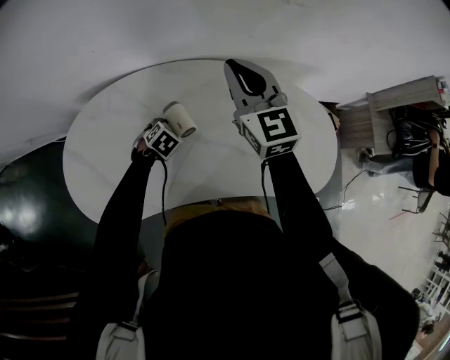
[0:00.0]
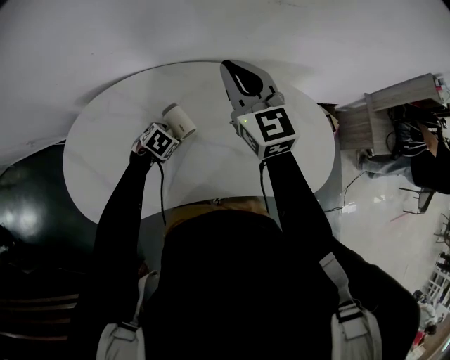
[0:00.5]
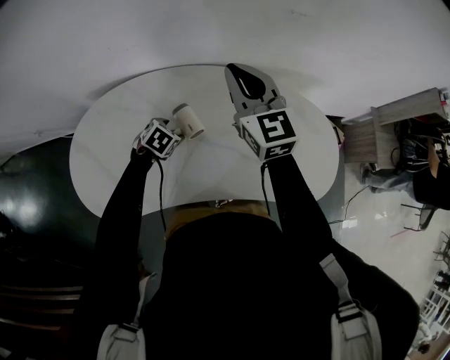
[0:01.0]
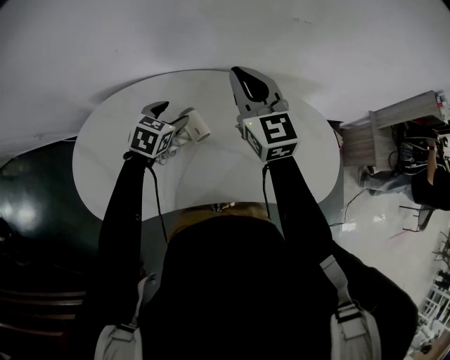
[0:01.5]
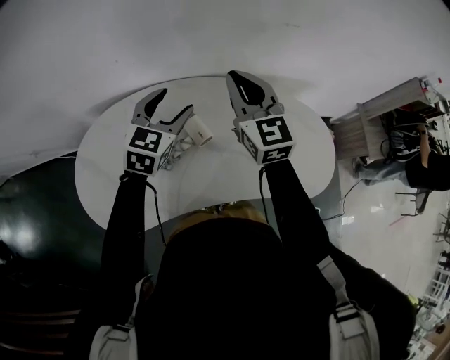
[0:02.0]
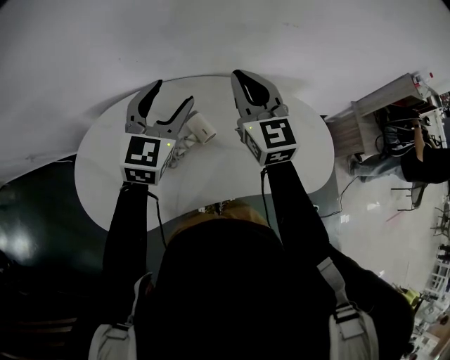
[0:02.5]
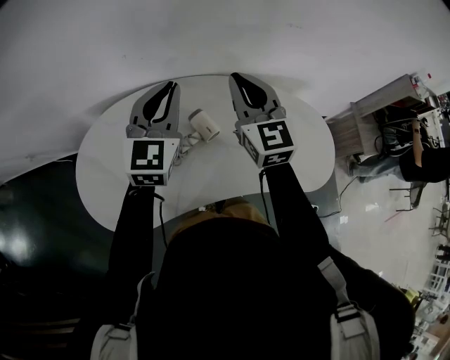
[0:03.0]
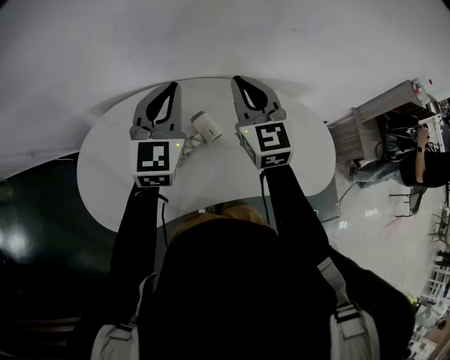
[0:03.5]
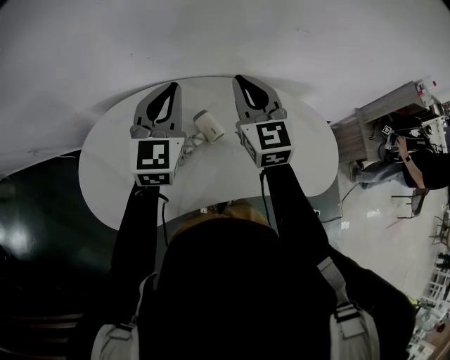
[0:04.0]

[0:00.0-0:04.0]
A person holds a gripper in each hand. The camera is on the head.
0:00.0 to 0:02.0: The left gripper shifts approximately 30 cm upward, and points its fingers about 50 degrees further upward. Meanwhile the right gripper shifts by approximately 5 cm.
0:02.0 to 0:04.0: The left gripper moves upward, roughly 10 cm, changes its angle by roughly 20 degrees, and closes its fingers.

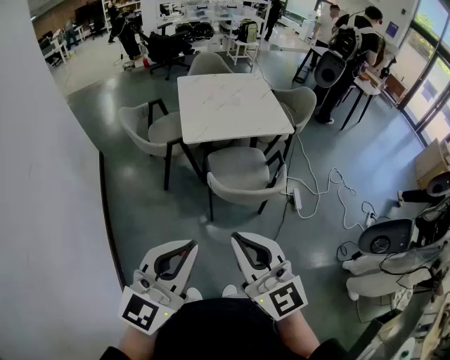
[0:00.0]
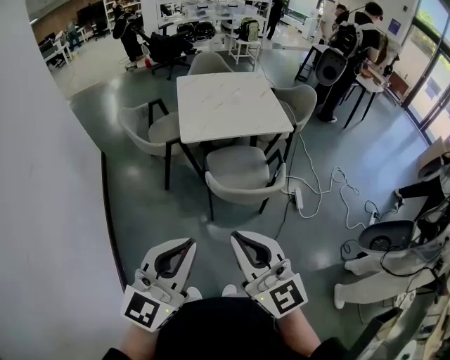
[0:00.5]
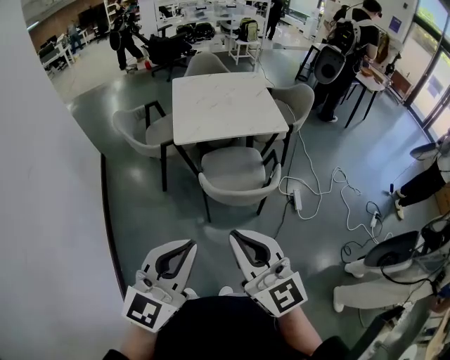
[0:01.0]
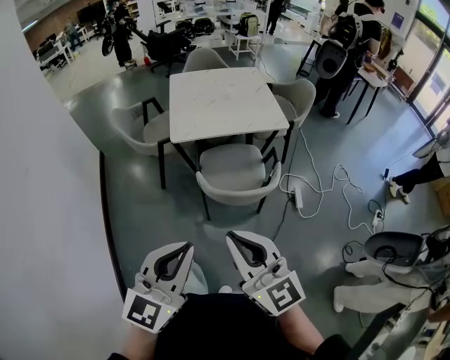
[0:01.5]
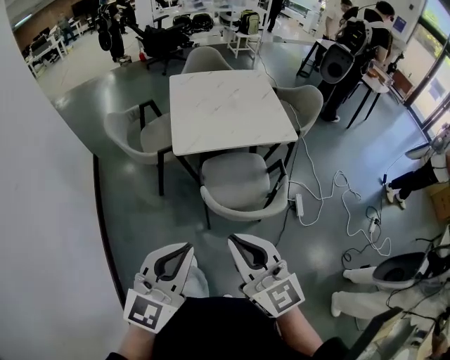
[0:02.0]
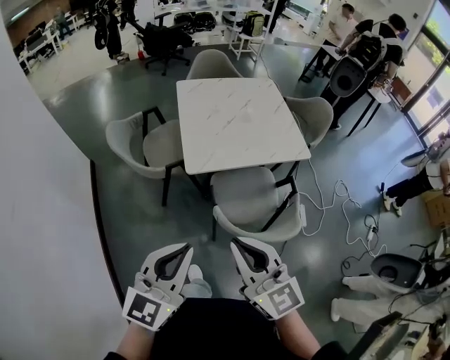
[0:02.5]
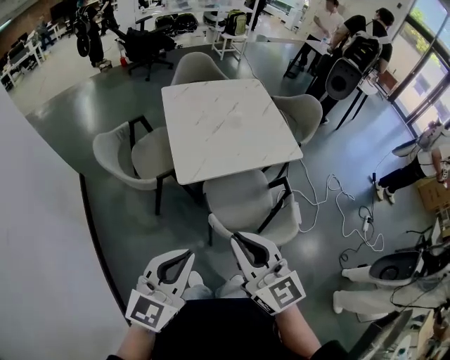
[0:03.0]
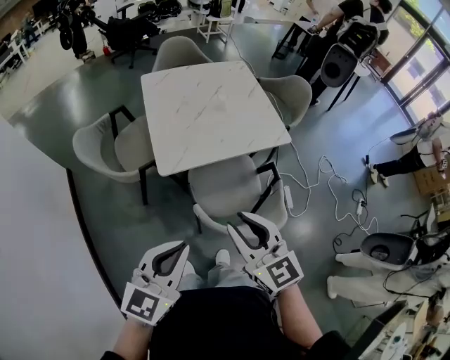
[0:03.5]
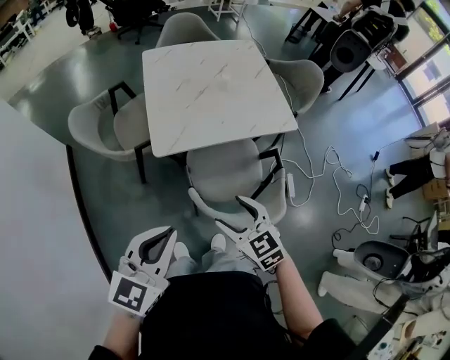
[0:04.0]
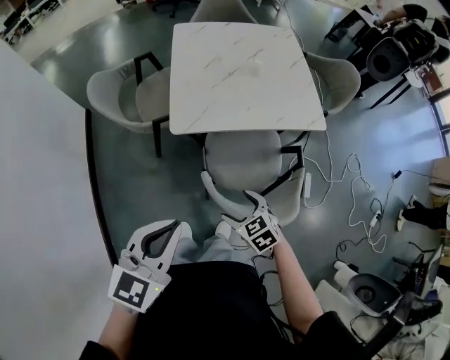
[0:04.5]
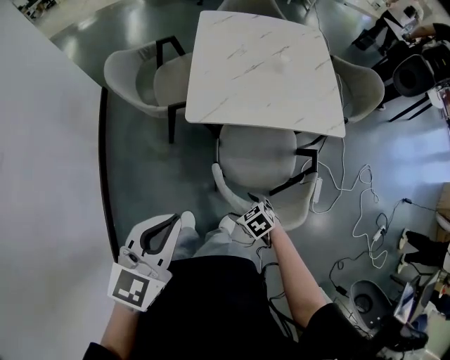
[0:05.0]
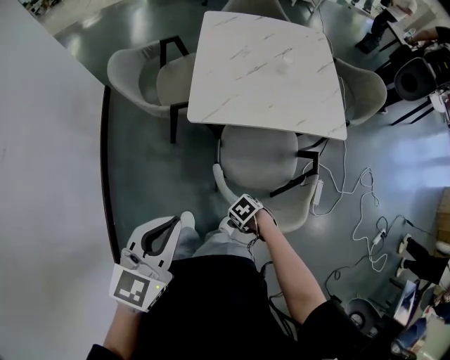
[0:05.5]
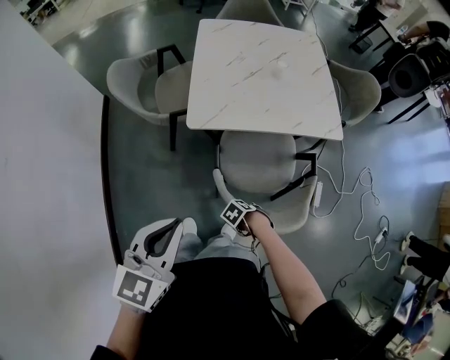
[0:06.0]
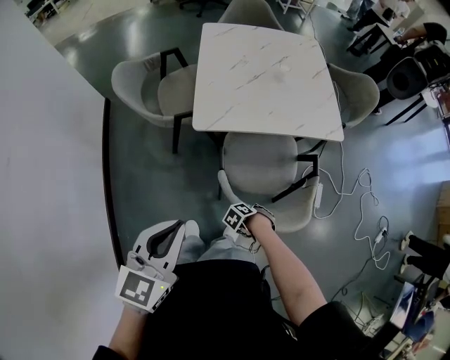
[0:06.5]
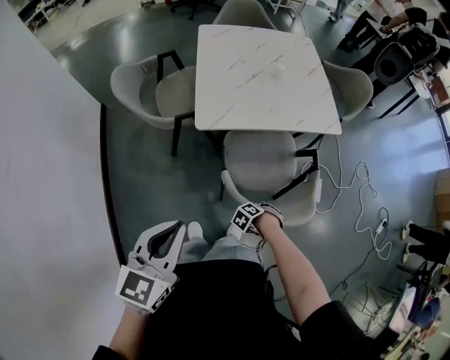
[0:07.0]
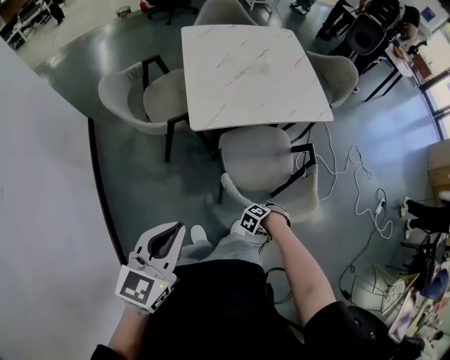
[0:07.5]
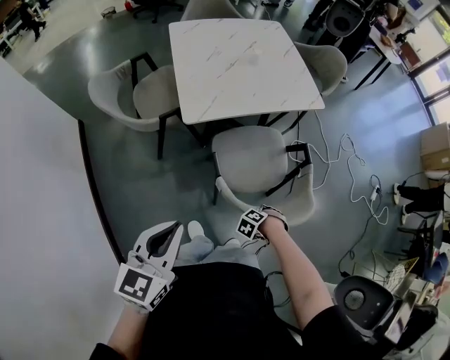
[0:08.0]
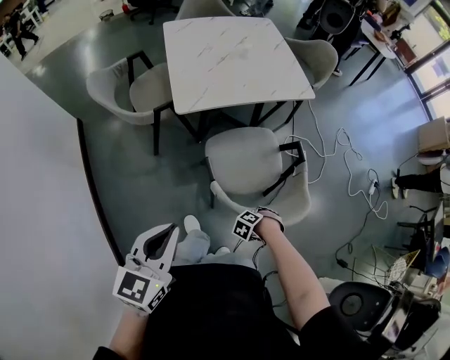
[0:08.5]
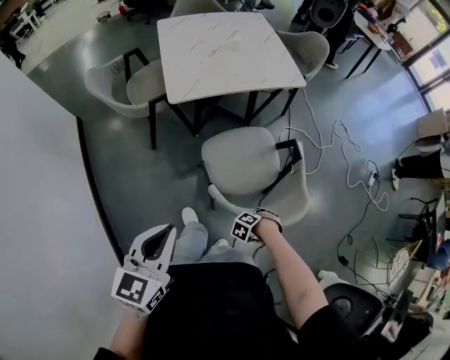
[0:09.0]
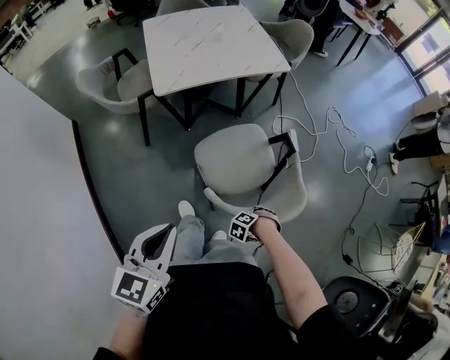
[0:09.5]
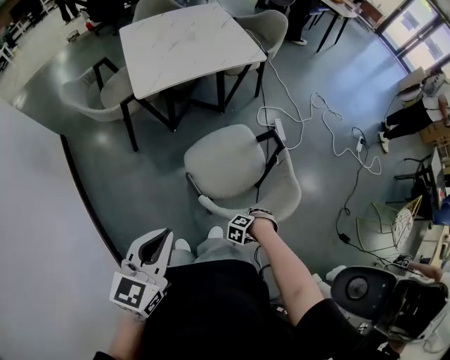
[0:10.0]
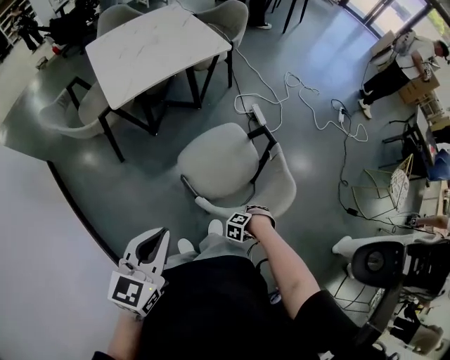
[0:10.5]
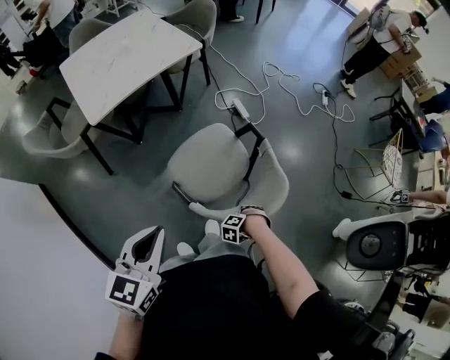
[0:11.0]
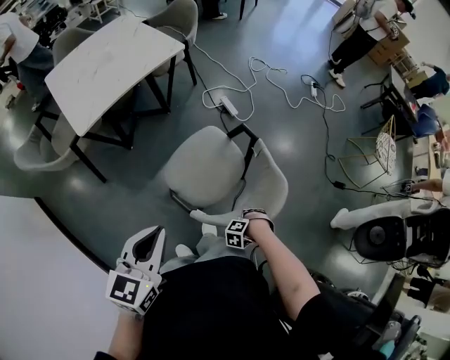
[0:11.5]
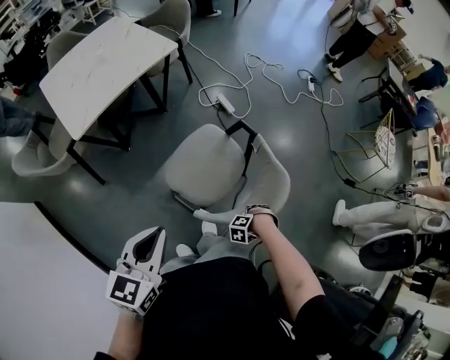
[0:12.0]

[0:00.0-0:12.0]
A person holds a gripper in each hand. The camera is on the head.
0:00.0 to 0:02.0: The two grippers go about 15 cm forward and downward.
0:02.0 to 0:04.0: The left gripper goes roughly 20 cm forward. The right gripper shifts approximately 30 cm forward and downward, tilts its fingers approximately 30 degrees downward, and opens up.
0:04.0 to 0:06.0: The right gripper goes approximately 30 cm downward, and points its fingers some 40 degrees further downward.
0:06.0 to 0:08.0: The right gripper moves roughly 5 cm, and closes its fingers. Meanwhile the left gripper shifts by approximately 10 cm.
0:08.0 to 0:10.0: The right gripper ends up approximately 25 cm from where it was, while the left gripper shifts by about 25 cm.
0:10.0 to 0:12.0: The left gripper shifts by about 10 cm, and rotates about 20 degrees, while the right gripper changes place by some 15 cm.

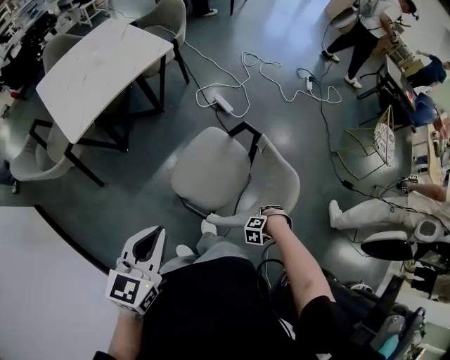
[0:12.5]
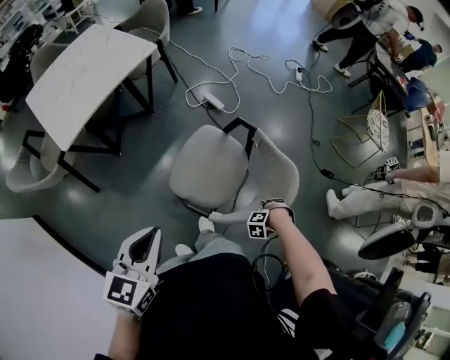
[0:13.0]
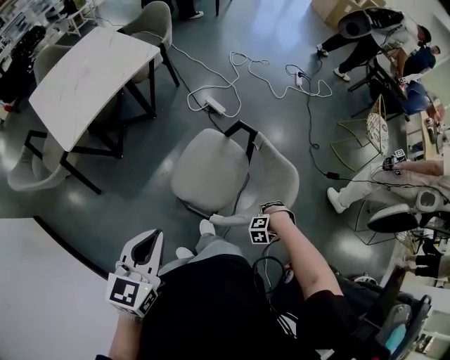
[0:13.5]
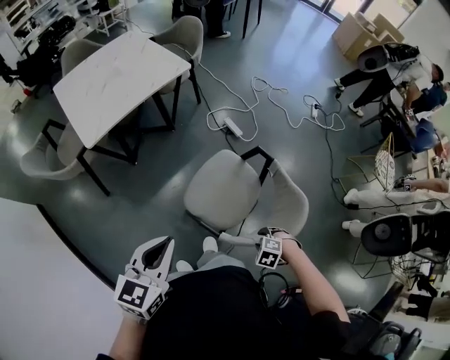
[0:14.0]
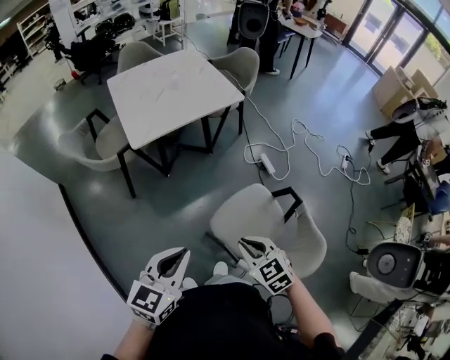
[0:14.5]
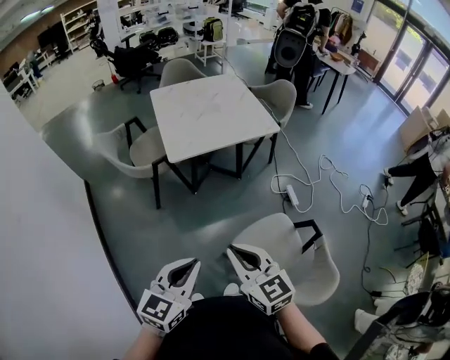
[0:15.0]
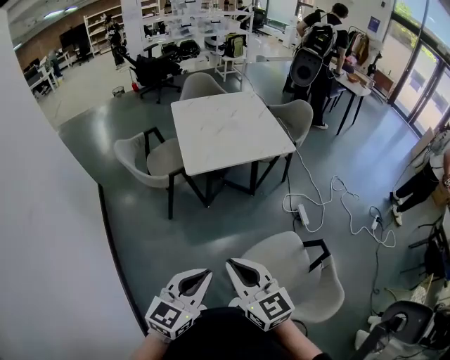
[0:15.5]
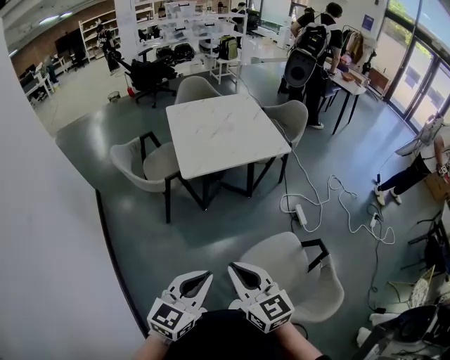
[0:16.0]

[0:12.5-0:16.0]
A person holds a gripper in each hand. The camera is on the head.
0:12.5 to 0:14.5: The left gripper changes place by roughly 10 cm. Meanwhile the right gripper shifts about 30 cm upward, and angles its fingers upward, by approximately 30 degrees.
0:14.5 to 0:16.0: The left gripper ends up approximately 5 cm from where it was; the right gripper travels upward and to the left by about 20 cm, and swivels roughly 30 degrees.

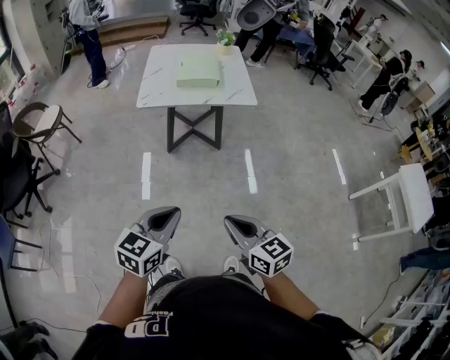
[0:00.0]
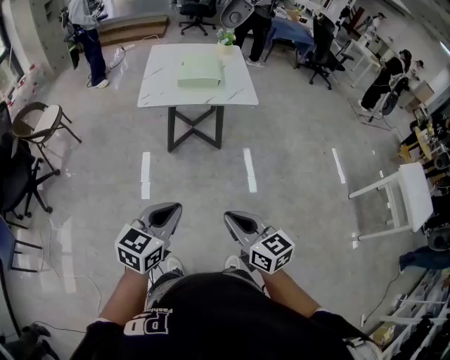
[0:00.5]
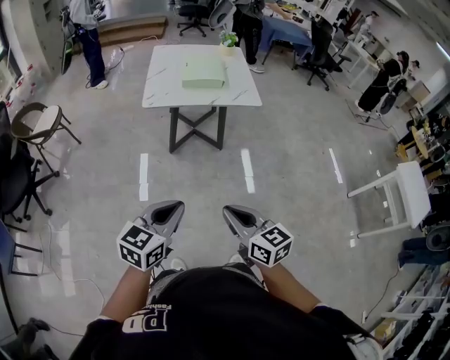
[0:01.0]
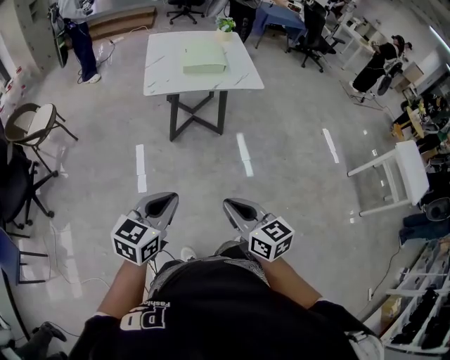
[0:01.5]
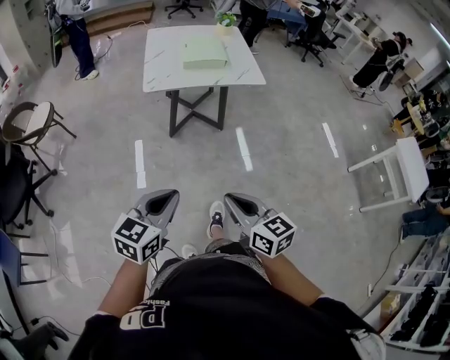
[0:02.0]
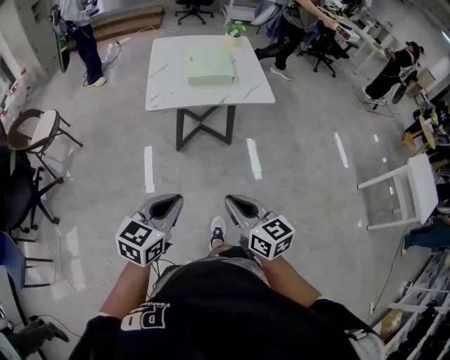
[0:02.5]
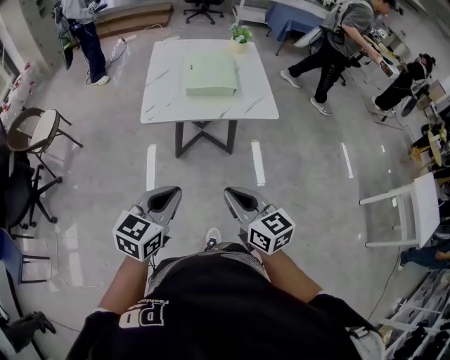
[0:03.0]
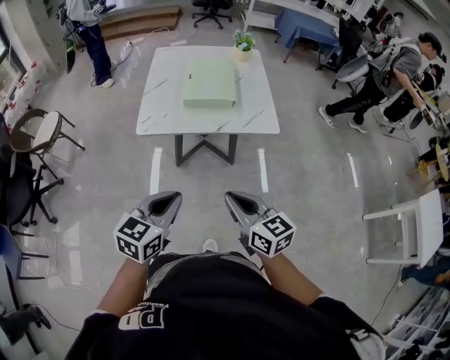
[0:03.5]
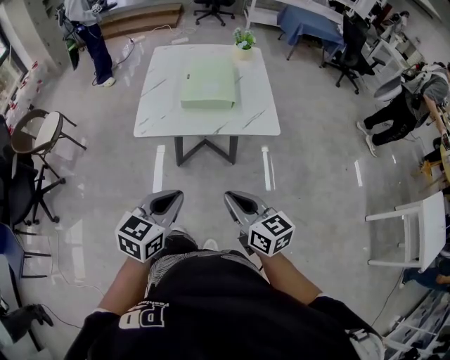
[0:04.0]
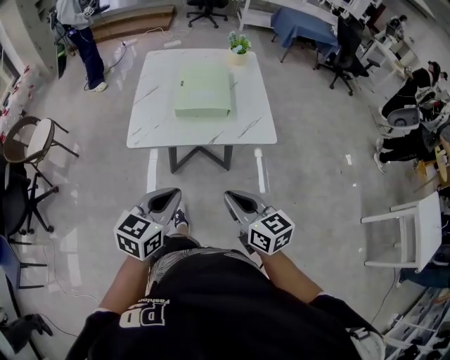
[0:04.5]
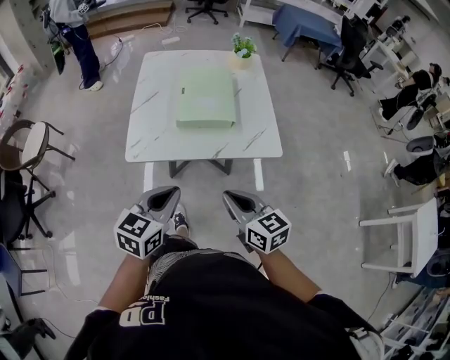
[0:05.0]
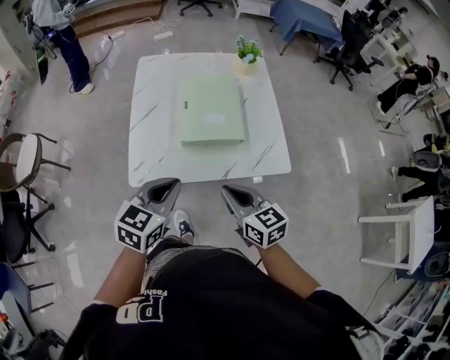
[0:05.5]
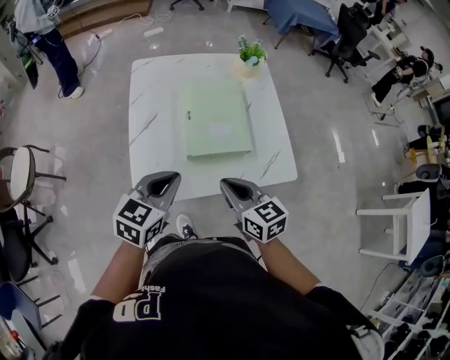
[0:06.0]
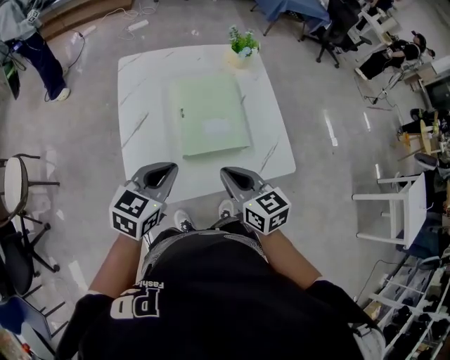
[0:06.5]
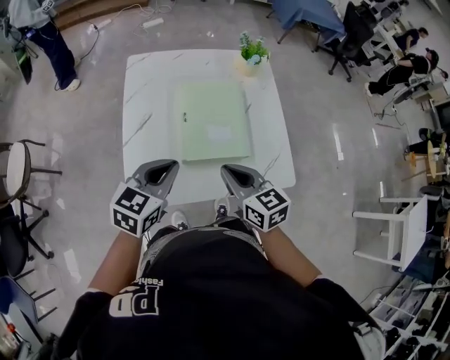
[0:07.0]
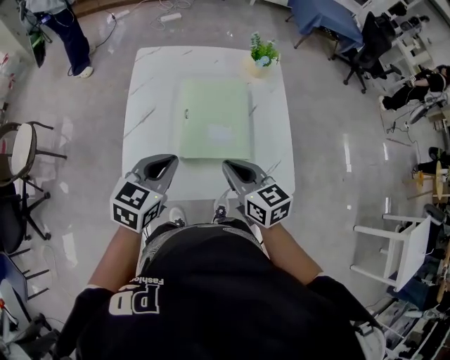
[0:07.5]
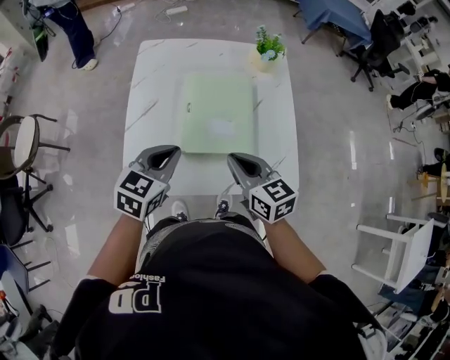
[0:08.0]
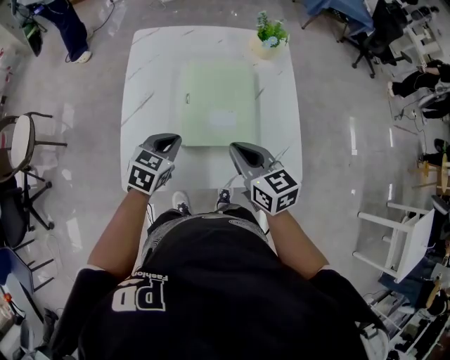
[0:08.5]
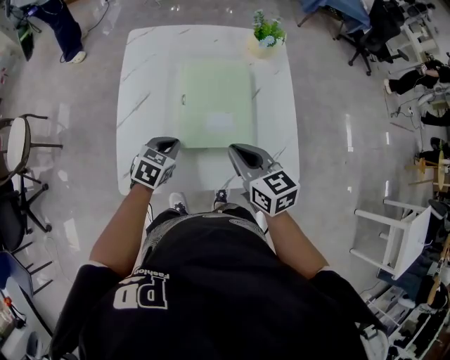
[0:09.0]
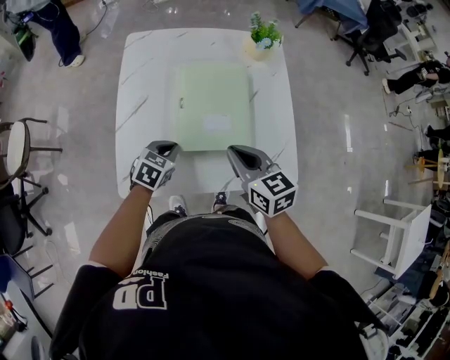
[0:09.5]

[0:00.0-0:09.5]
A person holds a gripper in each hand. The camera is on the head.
0:00.0 to 0:02.0: Both grippers move to the left, roughly 15 cm.
0:02.0 to 0:04.0: The left gripper goes roughly 30 cm forward and to the right; the right gripper is displaced forward by about 30 cm.
0:04.0 to 0:05.5: Both grippers travel together forward, some 25 cm.
0:05.5 to 0:07.5: Both grippers travel together forward, some 15 cm.
0:07.5 to 0:09.5: The left gripper goes about 20 cm downward, and swivels about 20 degrees.
